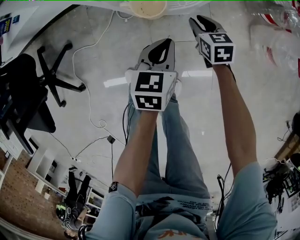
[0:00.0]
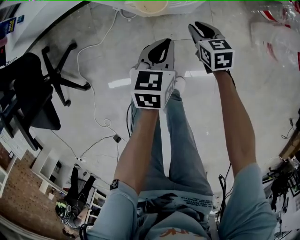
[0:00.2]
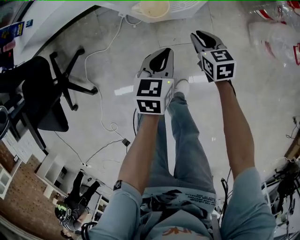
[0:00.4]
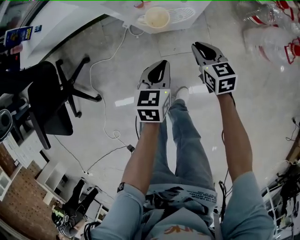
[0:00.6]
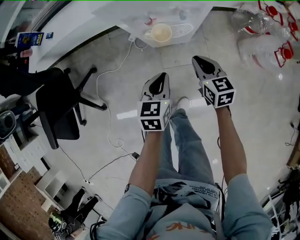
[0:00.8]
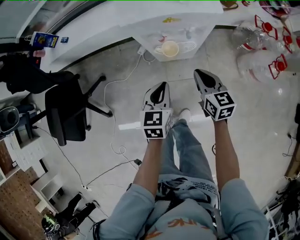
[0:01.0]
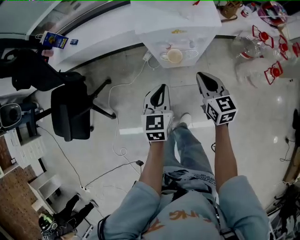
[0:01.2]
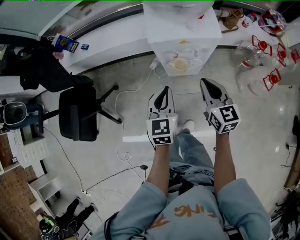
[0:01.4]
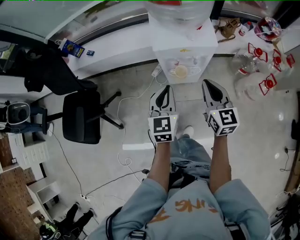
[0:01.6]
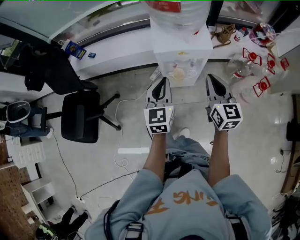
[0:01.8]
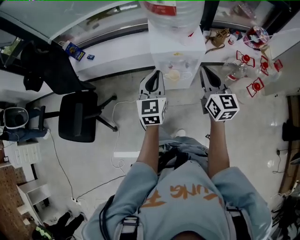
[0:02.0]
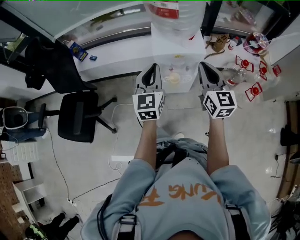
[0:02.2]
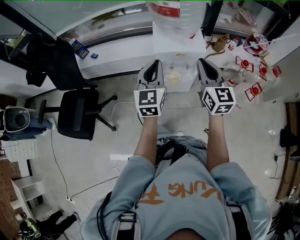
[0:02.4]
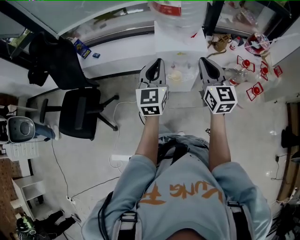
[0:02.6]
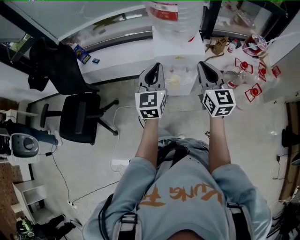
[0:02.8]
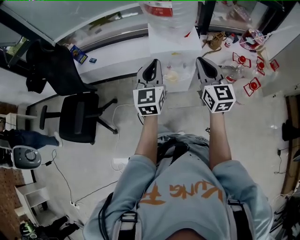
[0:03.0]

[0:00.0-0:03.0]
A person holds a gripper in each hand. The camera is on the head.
0:00.0 to 0:01.6: The two grippers go some 50 cm upward. The right gripper angles its fingers upward, by roughly 30 degrees, and closes up; the left gripper swivels some 30 degrees.
0:01.6 to 0:03.0: The two grippers go roughly 15 cm upward.

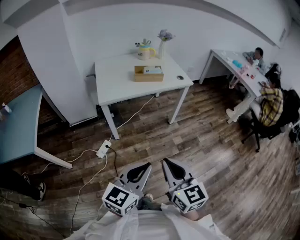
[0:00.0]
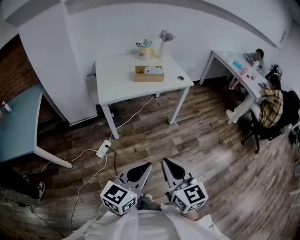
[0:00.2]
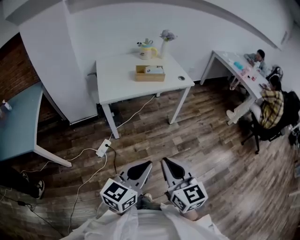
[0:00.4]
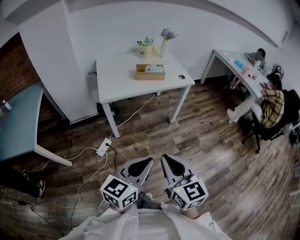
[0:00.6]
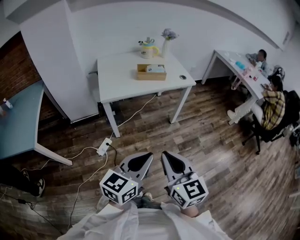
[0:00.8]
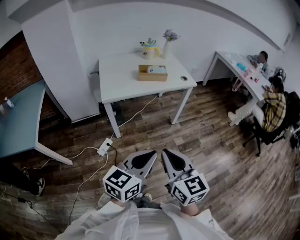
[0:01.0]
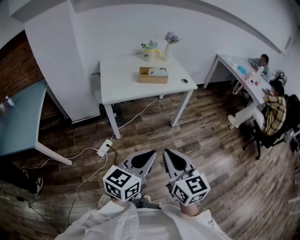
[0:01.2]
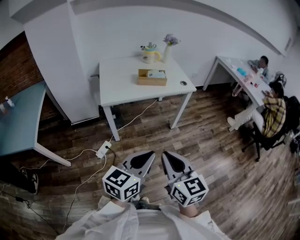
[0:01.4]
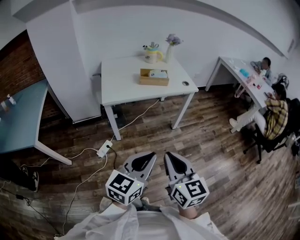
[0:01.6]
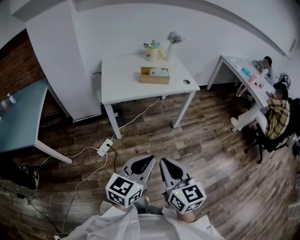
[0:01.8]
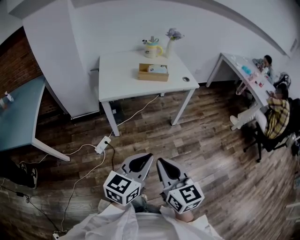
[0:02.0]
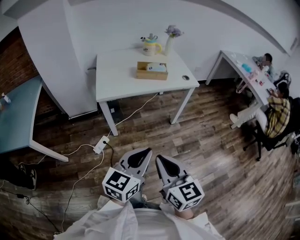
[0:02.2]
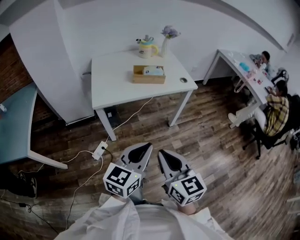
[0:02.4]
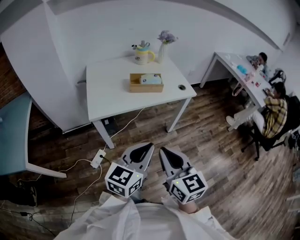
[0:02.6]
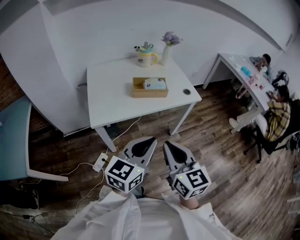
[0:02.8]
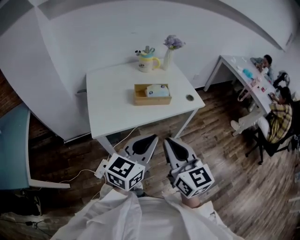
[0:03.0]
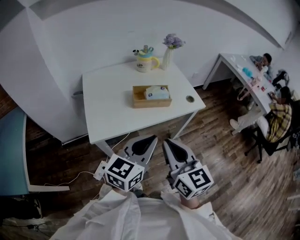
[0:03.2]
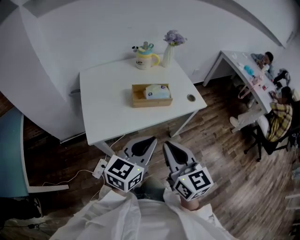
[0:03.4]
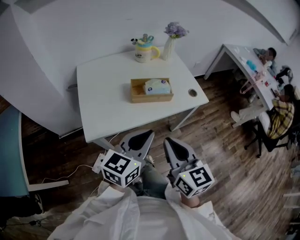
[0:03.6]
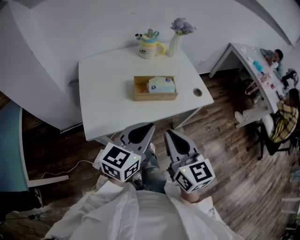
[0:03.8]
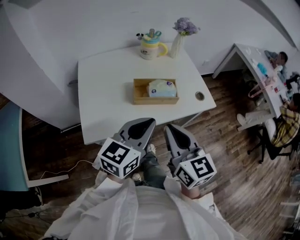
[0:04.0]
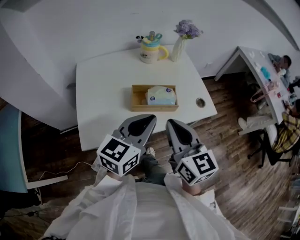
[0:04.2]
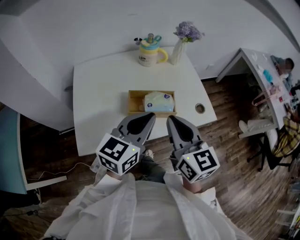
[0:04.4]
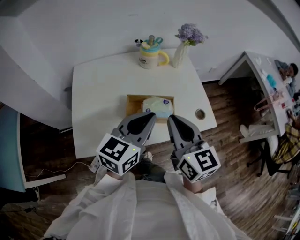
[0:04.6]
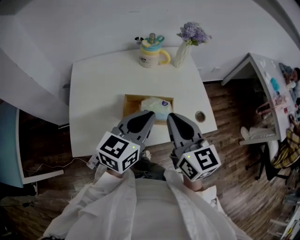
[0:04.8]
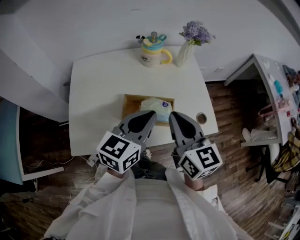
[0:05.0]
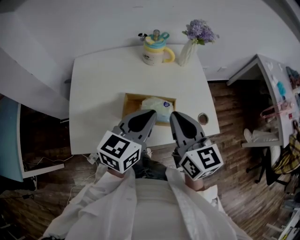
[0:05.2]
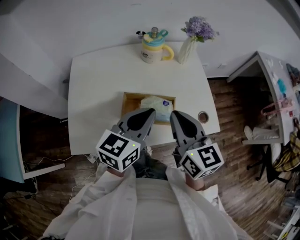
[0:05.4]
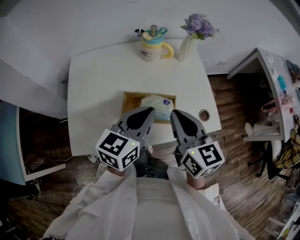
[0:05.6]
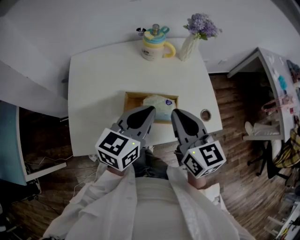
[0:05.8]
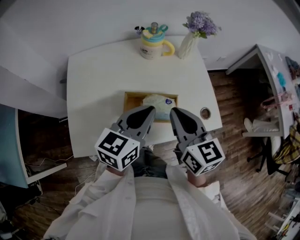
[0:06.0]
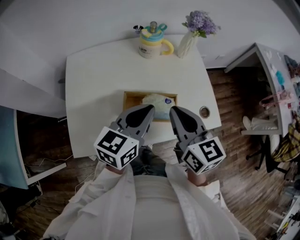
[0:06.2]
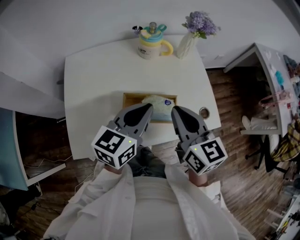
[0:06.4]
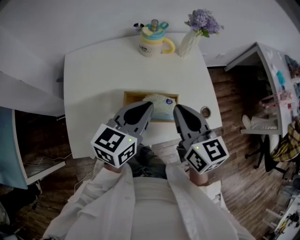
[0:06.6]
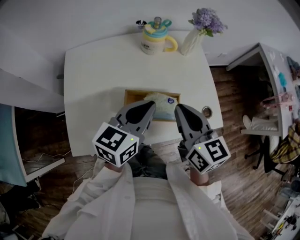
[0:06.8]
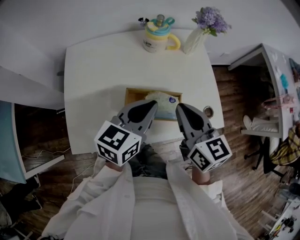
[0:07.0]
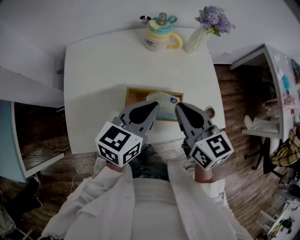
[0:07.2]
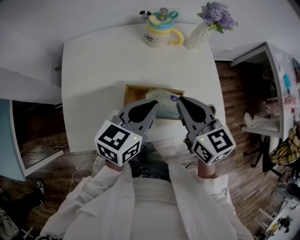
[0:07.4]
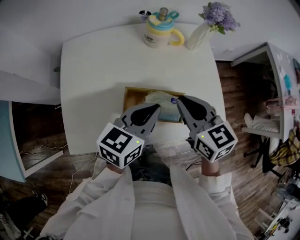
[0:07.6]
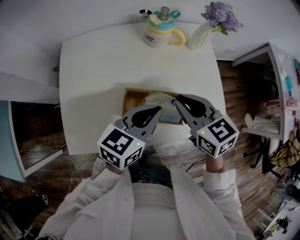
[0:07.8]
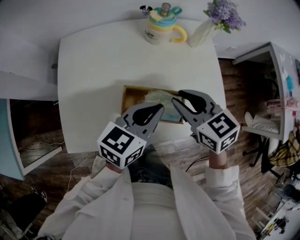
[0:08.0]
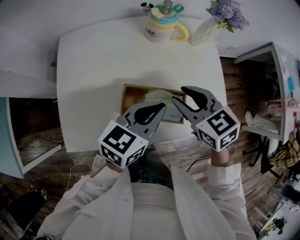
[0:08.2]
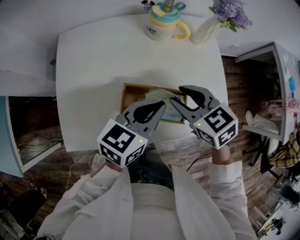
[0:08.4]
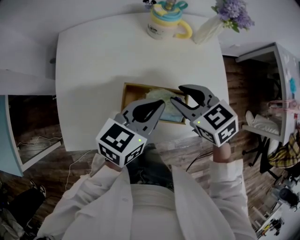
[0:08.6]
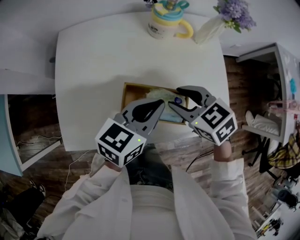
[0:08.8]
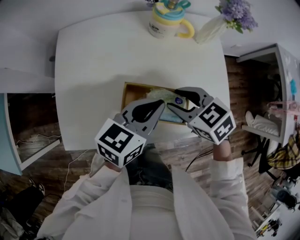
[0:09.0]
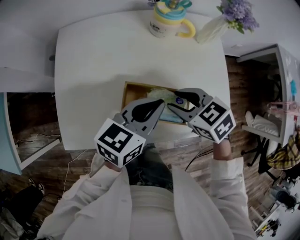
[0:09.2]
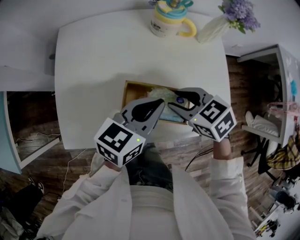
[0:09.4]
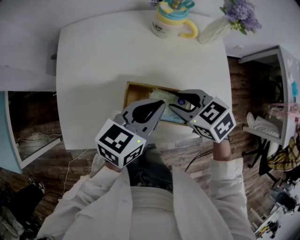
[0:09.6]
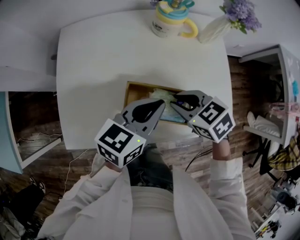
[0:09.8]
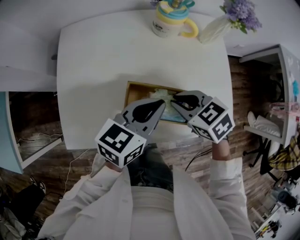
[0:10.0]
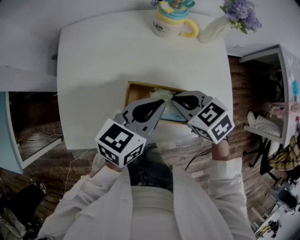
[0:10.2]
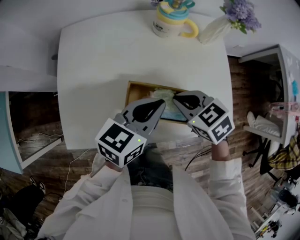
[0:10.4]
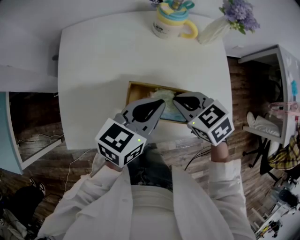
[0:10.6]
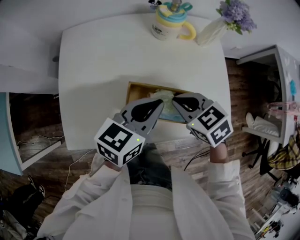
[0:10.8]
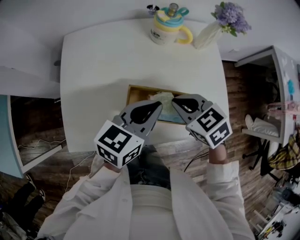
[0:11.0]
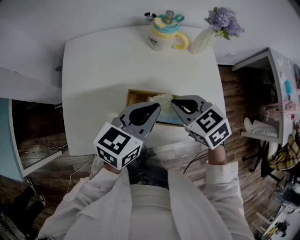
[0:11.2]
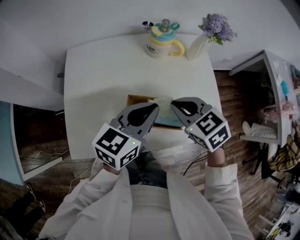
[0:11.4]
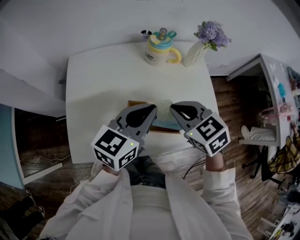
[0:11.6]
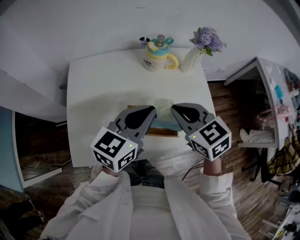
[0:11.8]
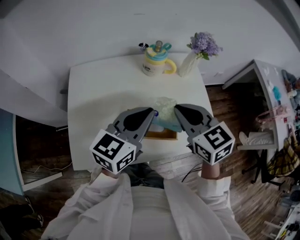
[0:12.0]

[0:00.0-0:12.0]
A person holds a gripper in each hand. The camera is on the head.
0:00.0 to 0:01.6: The left gripper moves forward, roughly 5 cm. The right gripper ends up about 5 cm from where it was.
0:01.6 to 0:03.0: The two grippers go roughly 30 cm forward.
0:03.0 to 0:04.4: Both grippers move forward, roughly 25 cm.
0:04.4 to 0:06.0: The two grippers go roughly 10 cm forward.
0:06.0 to 0:07.6: The right gripper shifts by roughly 5 cm.
0:07.6 to 0:09.0: The right gripper moves downward, approximately 10 cm, turns by approximately 30 degrees, and opens.
0:09.0 to 0:10.4: The right gripper closes its fingers.
0:10.4 to 0:12.0: The grippers both shift upward by roughly 15 cm. The right gripper turns by some 30 degrees.

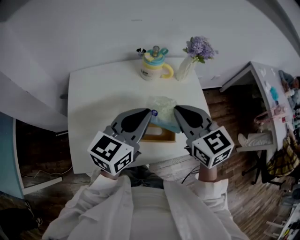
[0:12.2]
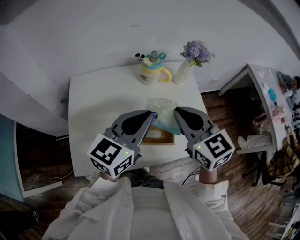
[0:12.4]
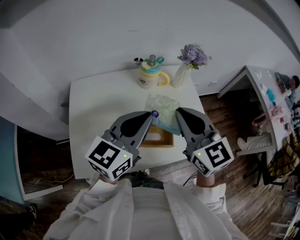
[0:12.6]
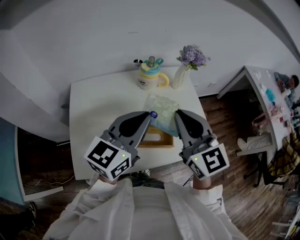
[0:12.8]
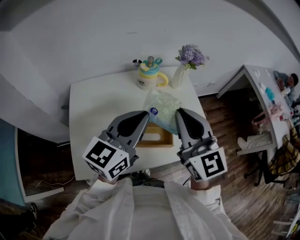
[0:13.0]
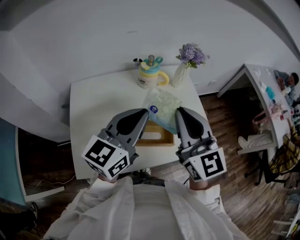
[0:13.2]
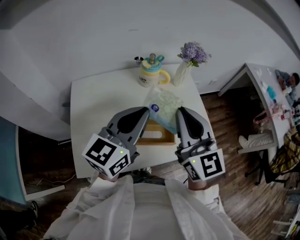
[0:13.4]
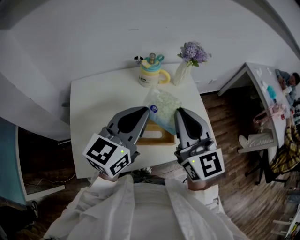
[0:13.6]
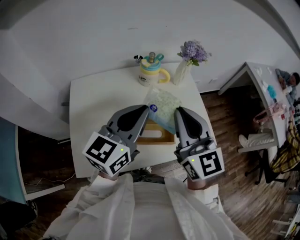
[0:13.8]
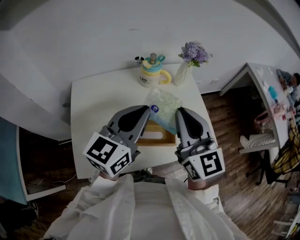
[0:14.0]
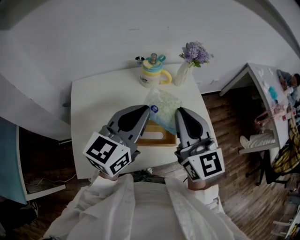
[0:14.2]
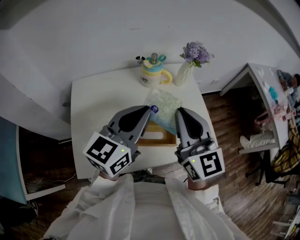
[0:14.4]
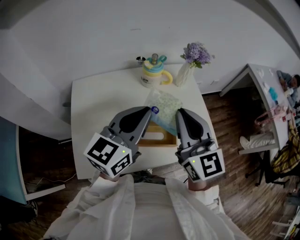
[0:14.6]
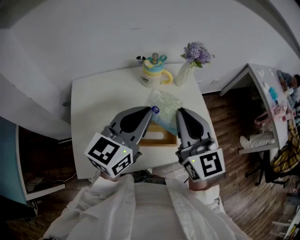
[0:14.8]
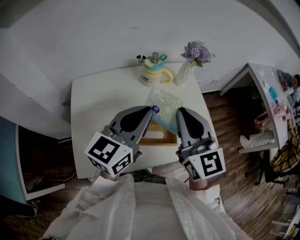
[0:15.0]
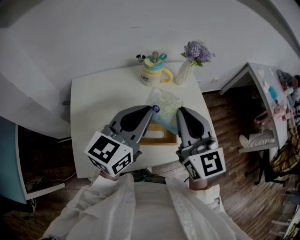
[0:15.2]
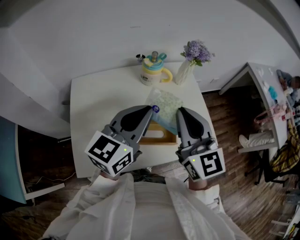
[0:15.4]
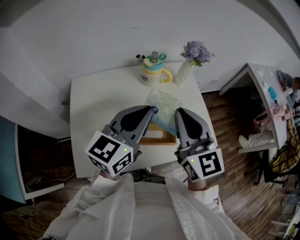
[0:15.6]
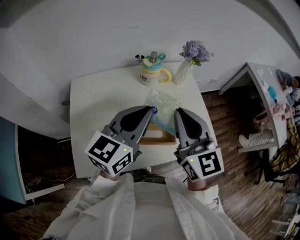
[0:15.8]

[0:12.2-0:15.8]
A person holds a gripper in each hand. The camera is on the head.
0:12.2 to 0:14.0: The right gripper shifts about 5 cm upward, and rotates roughly 30 degrees.
0:14.0 to 0:15.8: Neither gripper changes place.

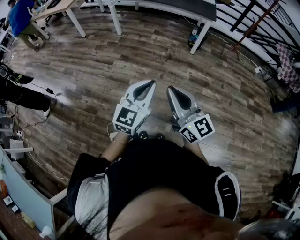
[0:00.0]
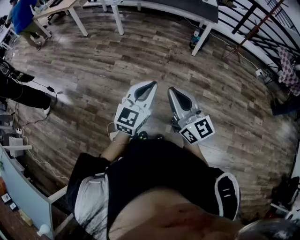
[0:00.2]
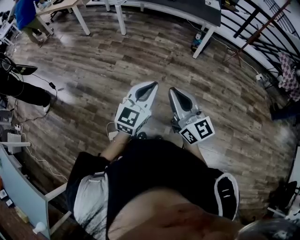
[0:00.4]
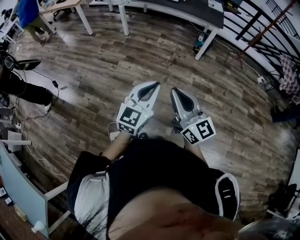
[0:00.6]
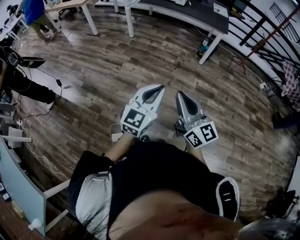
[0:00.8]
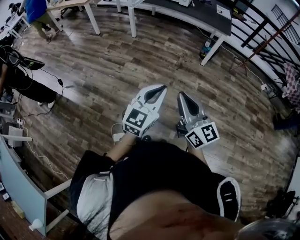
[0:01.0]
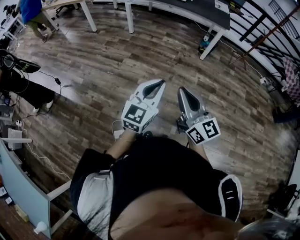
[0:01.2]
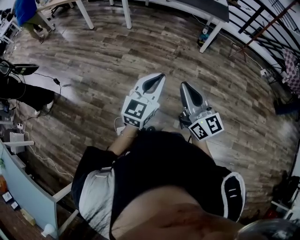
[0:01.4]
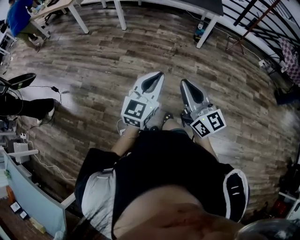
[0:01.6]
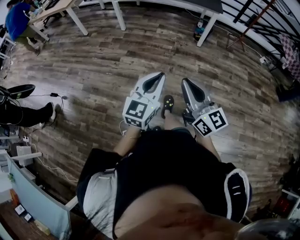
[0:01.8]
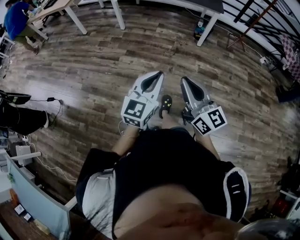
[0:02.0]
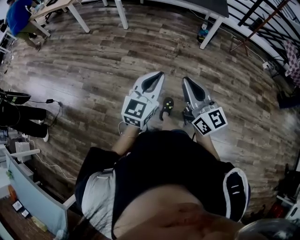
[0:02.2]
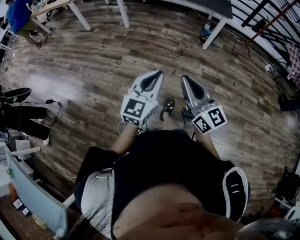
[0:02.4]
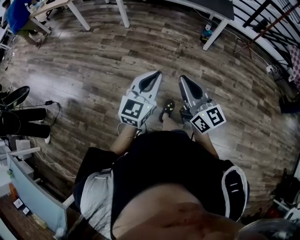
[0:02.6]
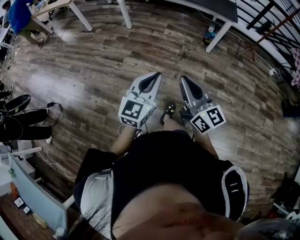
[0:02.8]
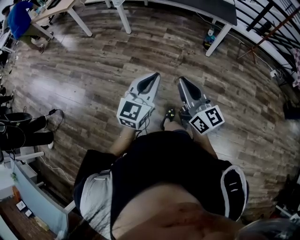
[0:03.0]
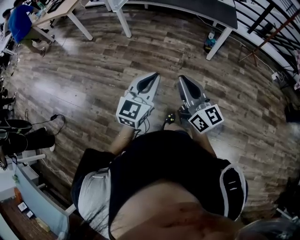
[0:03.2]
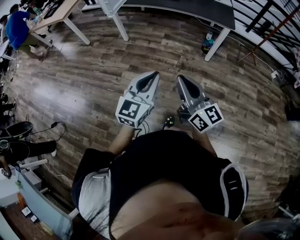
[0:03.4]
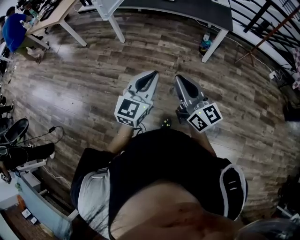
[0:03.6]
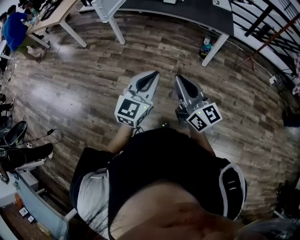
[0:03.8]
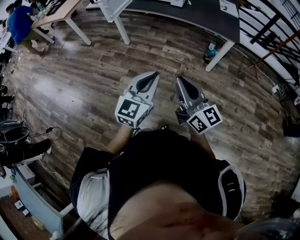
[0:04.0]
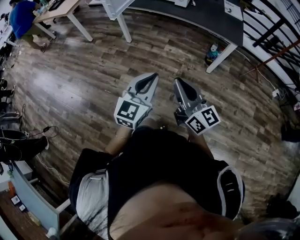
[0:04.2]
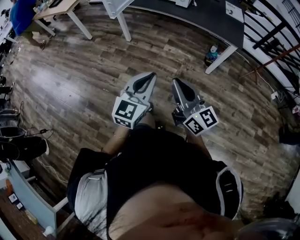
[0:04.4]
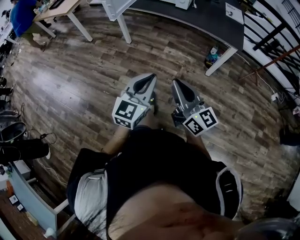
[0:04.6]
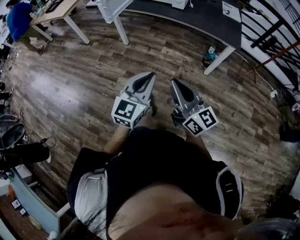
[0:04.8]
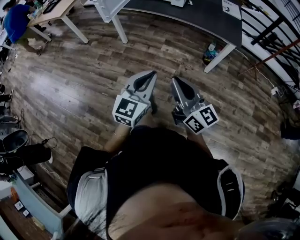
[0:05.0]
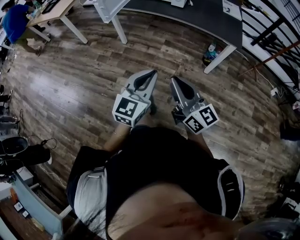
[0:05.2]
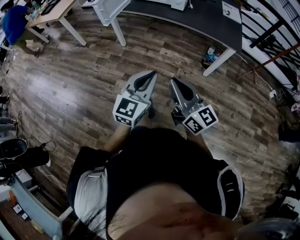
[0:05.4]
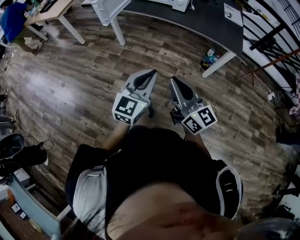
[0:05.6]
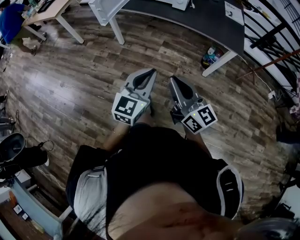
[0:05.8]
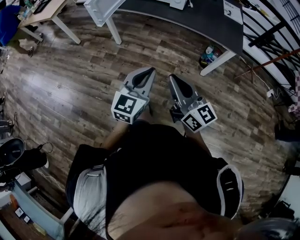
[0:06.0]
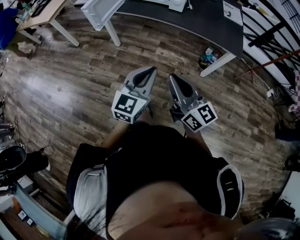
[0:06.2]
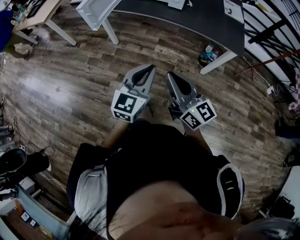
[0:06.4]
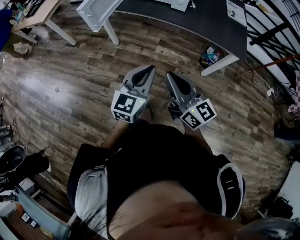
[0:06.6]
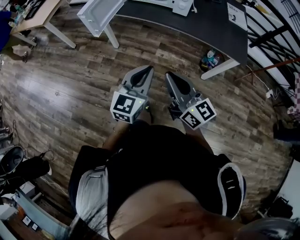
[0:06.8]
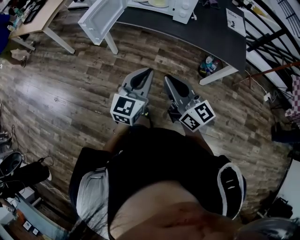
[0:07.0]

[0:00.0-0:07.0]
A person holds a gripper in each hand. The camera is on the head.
0:00.0 to 0:01.4: Both grippers move to the left, roughly 5 cm.
0:01.4 to 0:02.8: The grippers both shift forward by approximately 15 cm.
0:02.8 to 0:04.2: Both grippers travel together forward, some 20 cm.
0:04.2 to 0:05.6: The grippers both shift forward by about 10 cm.
0:05.6 to 0:07.0: The grippers both shift forward by some 20 cm.
